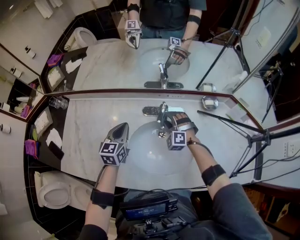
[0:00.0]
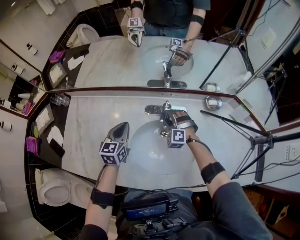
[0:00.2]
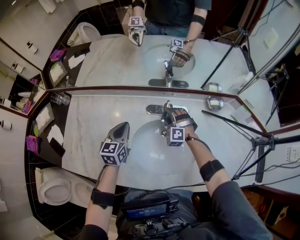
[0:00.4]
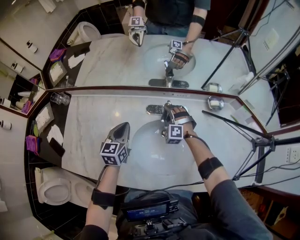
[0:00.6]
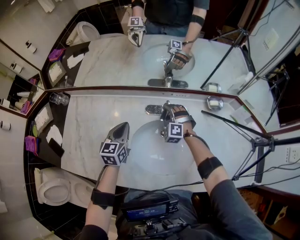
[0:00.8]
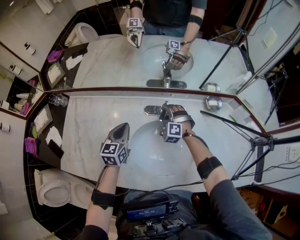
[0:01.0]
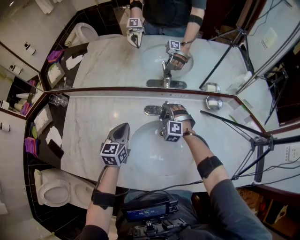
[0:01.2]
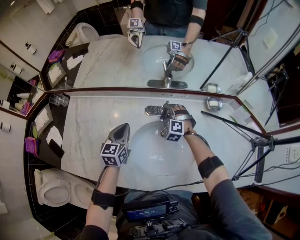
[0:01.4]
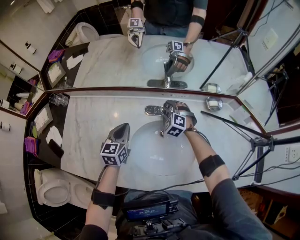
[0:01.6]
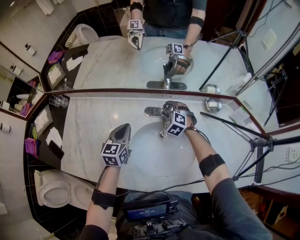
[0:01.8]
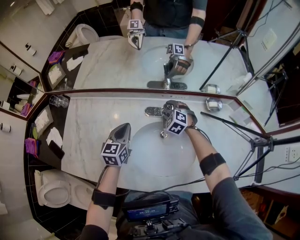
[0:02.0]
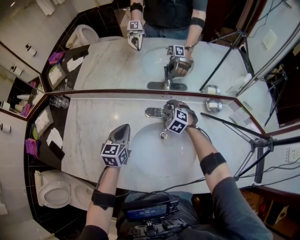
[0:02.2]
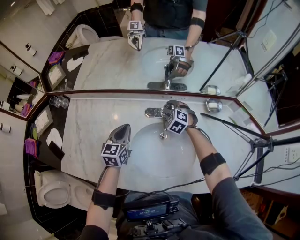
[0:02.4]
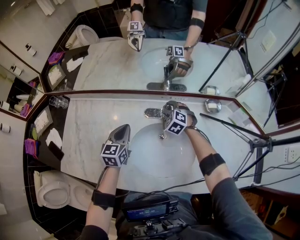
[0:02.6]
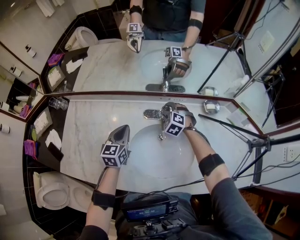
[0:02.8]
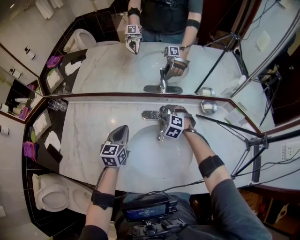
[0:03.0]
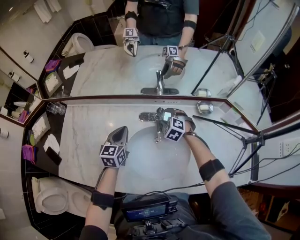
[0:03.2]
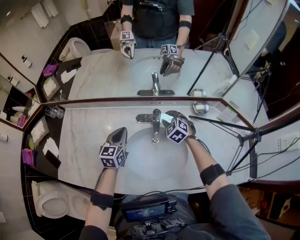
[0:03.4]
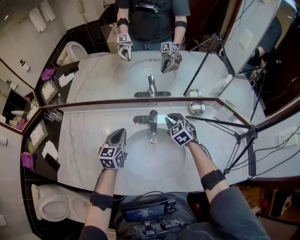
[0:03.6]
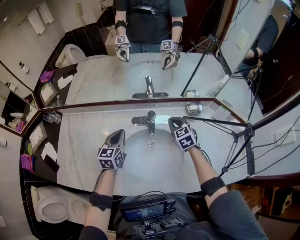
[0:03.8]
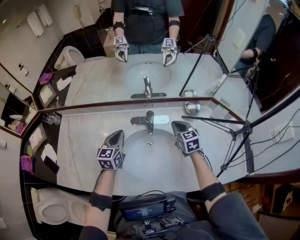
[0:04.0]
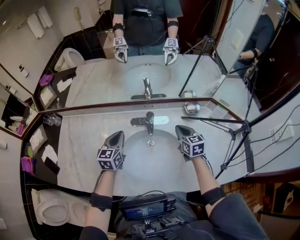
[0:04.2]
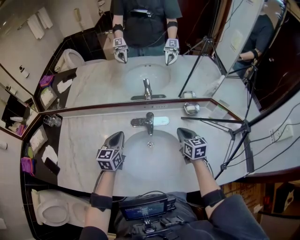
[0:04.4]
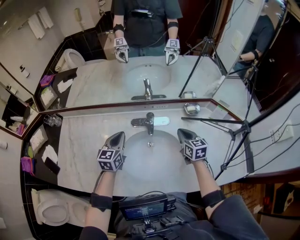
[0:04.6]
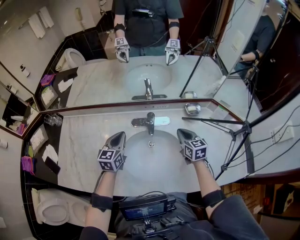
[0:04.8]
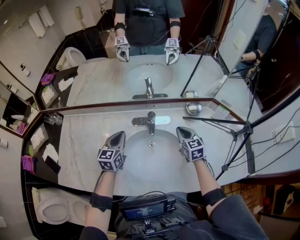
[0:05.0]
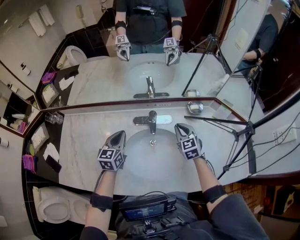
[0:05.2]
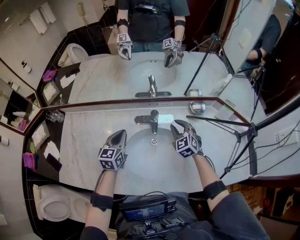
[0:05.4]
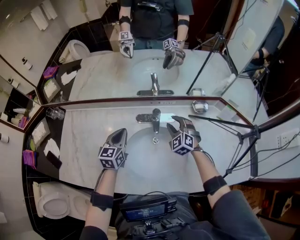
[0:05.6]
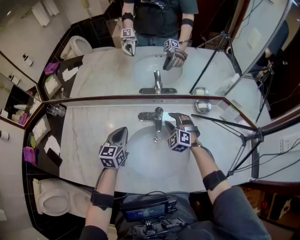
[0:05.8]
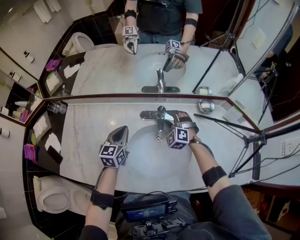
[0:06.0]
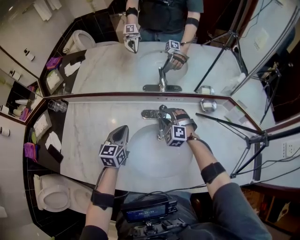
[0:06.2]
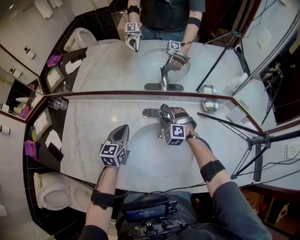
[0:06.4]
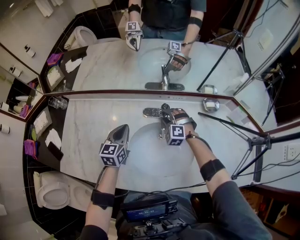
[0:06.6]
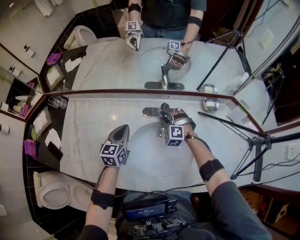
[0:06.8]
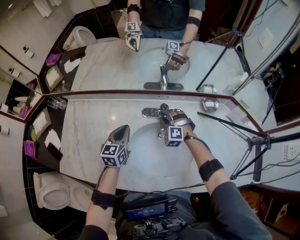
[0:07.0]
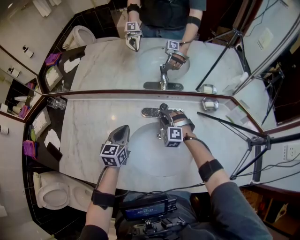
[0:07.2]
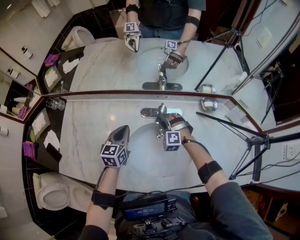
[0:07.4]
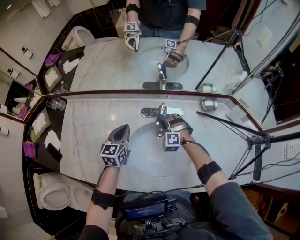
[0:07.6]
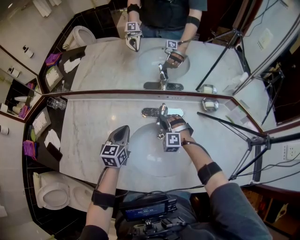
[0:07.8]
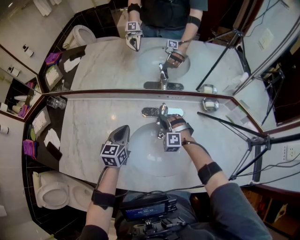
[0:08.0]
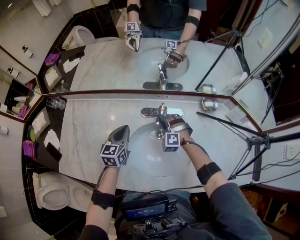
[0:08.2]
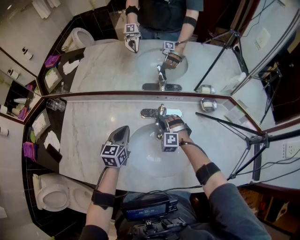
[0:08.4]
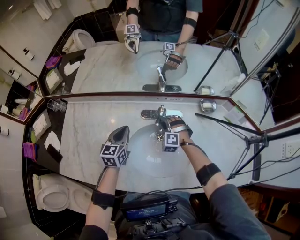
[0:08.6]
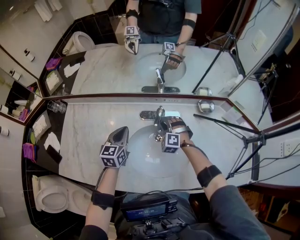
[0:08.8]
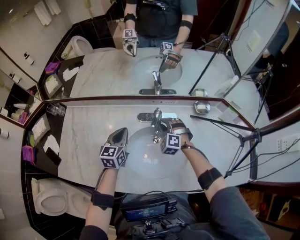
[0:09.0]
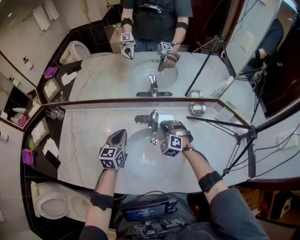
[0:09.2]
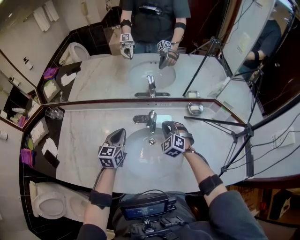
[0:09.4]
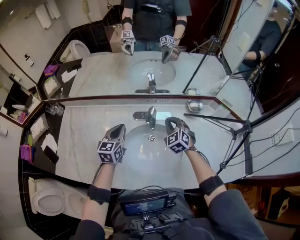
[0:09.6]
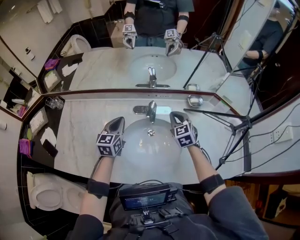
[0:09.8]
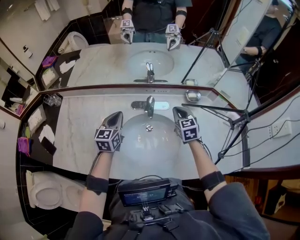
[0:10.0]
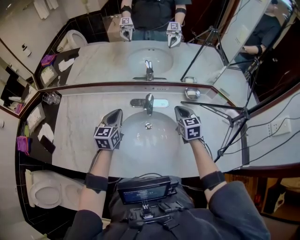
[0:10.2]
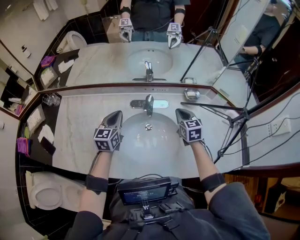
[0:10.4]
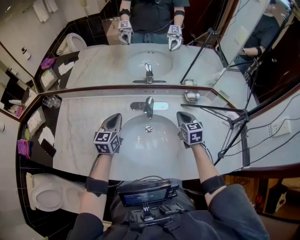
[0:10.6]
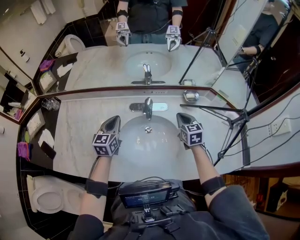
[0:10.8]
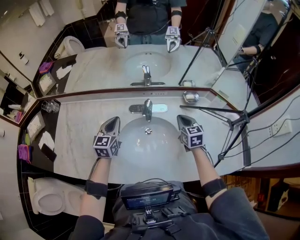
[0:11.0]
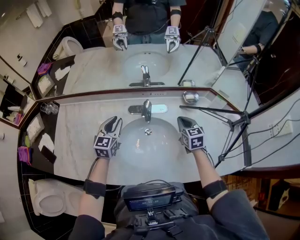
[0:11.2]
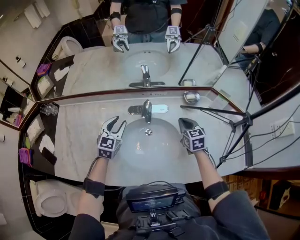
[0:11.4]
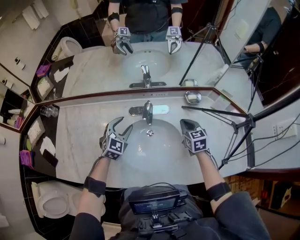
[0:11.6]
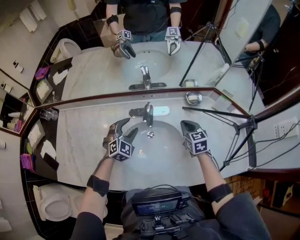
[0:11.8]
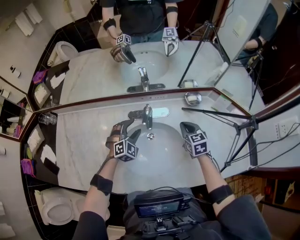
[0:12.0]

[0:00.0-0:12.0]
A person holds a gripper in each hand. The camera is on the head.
0:00.0 to 0:01.6: The right gripper shifts approximately 5 cm forward.
0:01.6 to 0:03.0: There are only small adjustments of the grippers.
0:03.0 to 0:04.4: The right gripper is displaced to the right, backward and upward by about 20 cm, rotates around the line of its fingers by about 70 degrees, clockwise from behind, and closes up, while the left gripper shifts by roughly 5 cm.
0:04.4 to 0:06.0: The right gripper travels to the left and forward by roughly 15 cm, rotates around the line of its fingers by roughly 70 degrees, counterclockwise from behind, and opens its fingers.
0:06.0 to 0:07.6: The right gripper travels downward by roughly 5 cm.
0:07.6 to 0:09.0: The right gripper moves about 5 cm.
0:09.0 to 0:10.4: The right gripper shifts approximately 15 cm to the right and upward, rotates around the line of its fingers by approximately 60 degrees, clockwise from behind, and closes up.
0:10.4 to 0:12.0: The left gripper moves downward and to the right, some 15 cm, rotates around the line of its fingers by some 60 degrees, clockwise from behind, and opens; the right gripper shifts about 5 cm downward.

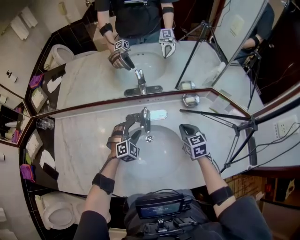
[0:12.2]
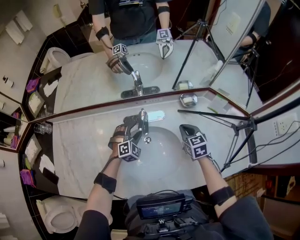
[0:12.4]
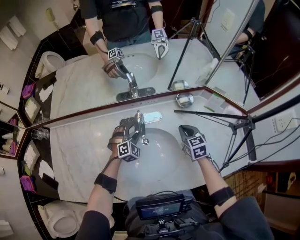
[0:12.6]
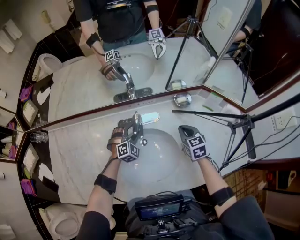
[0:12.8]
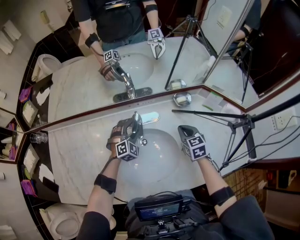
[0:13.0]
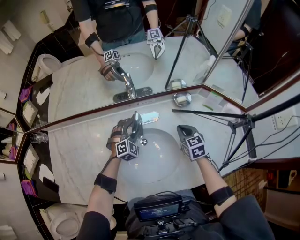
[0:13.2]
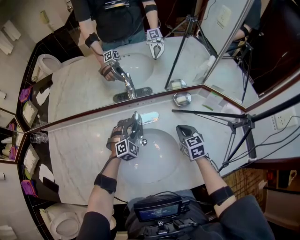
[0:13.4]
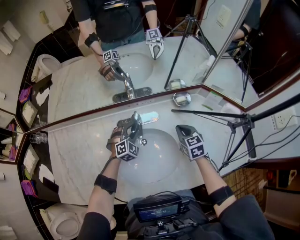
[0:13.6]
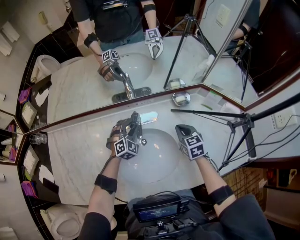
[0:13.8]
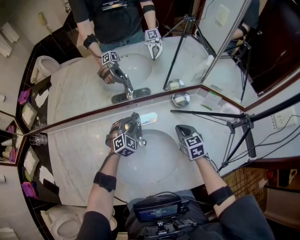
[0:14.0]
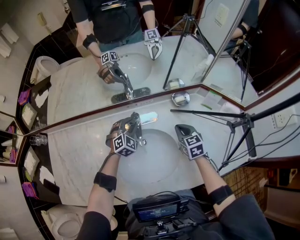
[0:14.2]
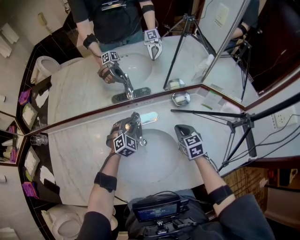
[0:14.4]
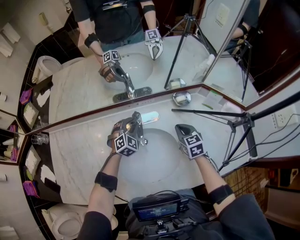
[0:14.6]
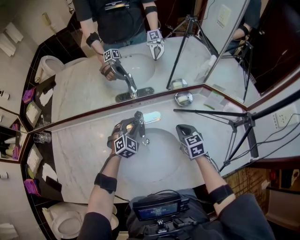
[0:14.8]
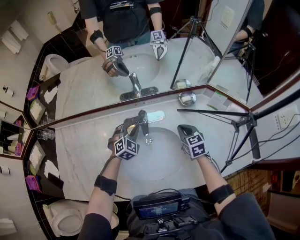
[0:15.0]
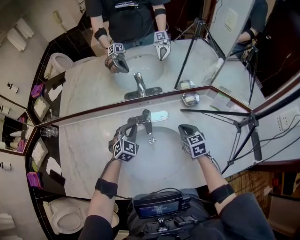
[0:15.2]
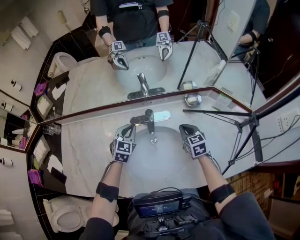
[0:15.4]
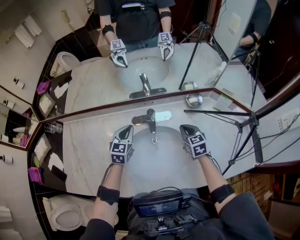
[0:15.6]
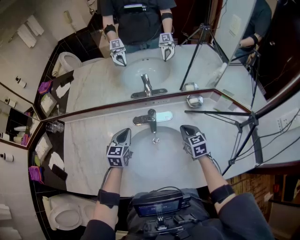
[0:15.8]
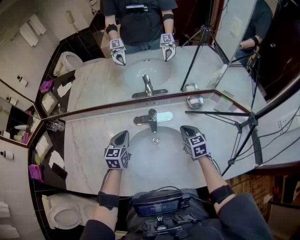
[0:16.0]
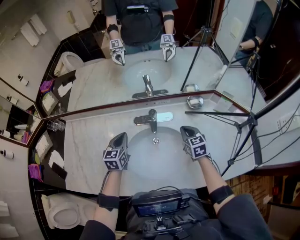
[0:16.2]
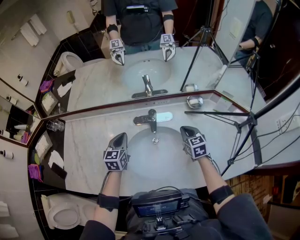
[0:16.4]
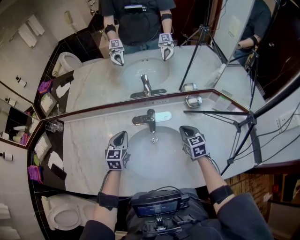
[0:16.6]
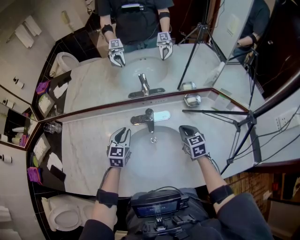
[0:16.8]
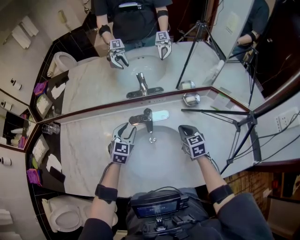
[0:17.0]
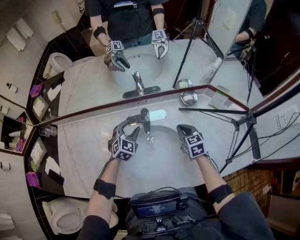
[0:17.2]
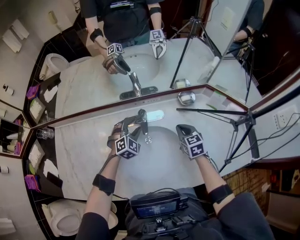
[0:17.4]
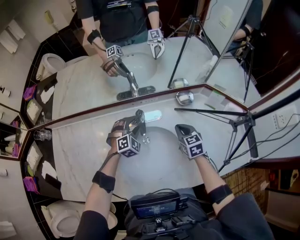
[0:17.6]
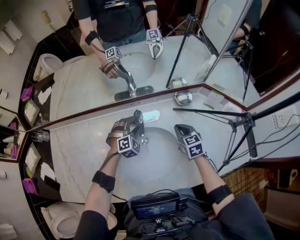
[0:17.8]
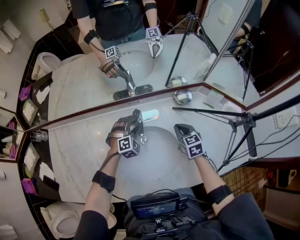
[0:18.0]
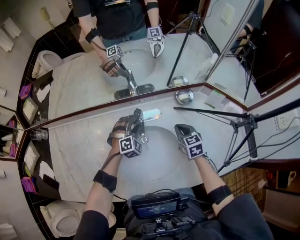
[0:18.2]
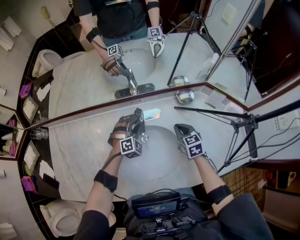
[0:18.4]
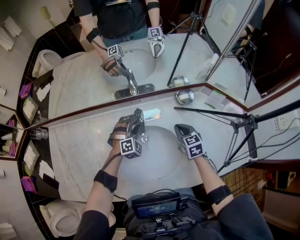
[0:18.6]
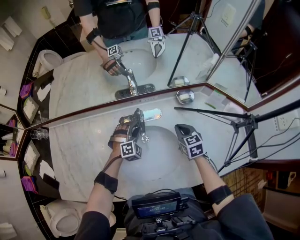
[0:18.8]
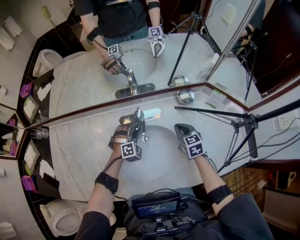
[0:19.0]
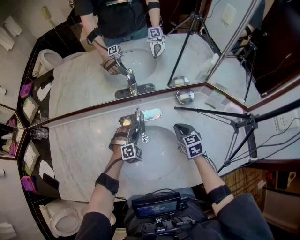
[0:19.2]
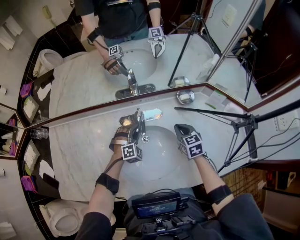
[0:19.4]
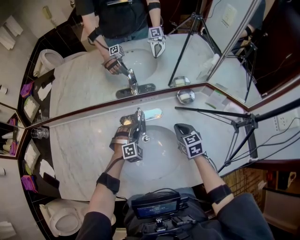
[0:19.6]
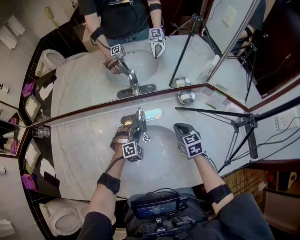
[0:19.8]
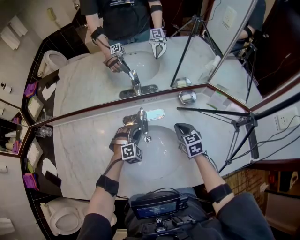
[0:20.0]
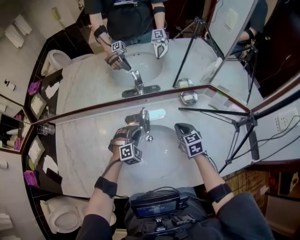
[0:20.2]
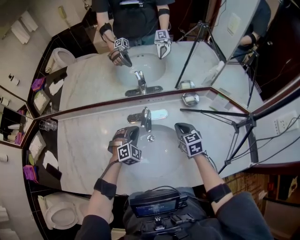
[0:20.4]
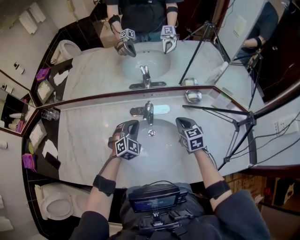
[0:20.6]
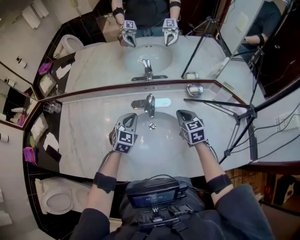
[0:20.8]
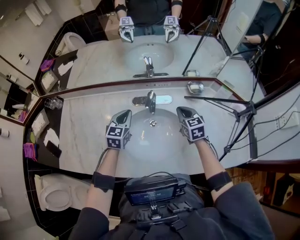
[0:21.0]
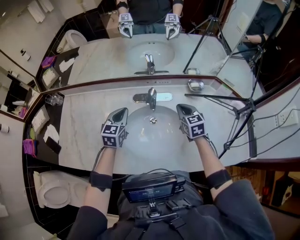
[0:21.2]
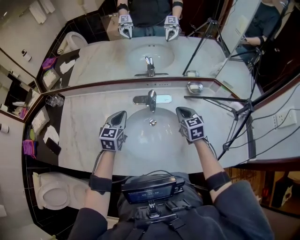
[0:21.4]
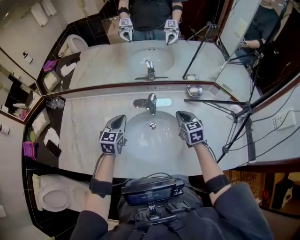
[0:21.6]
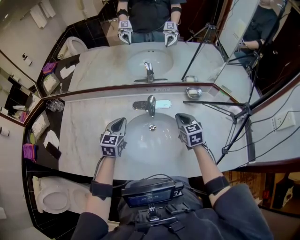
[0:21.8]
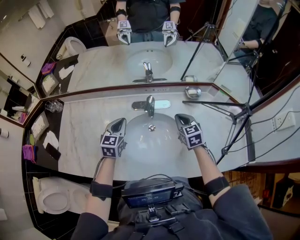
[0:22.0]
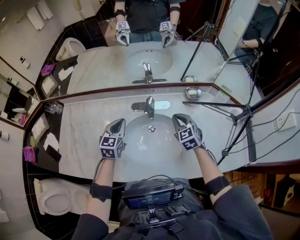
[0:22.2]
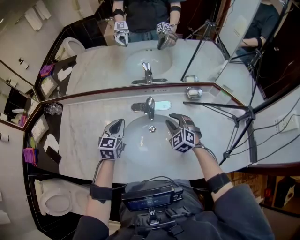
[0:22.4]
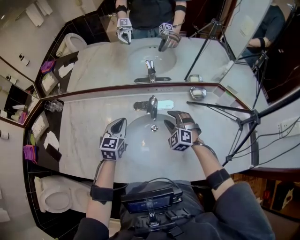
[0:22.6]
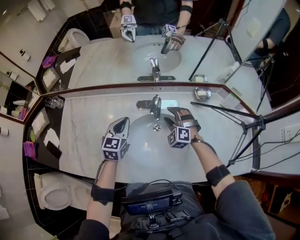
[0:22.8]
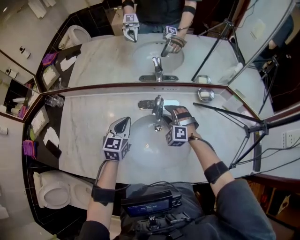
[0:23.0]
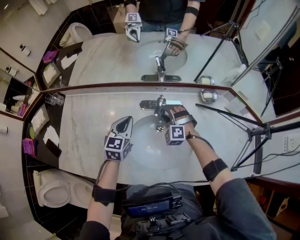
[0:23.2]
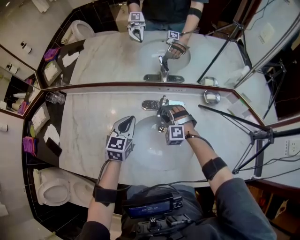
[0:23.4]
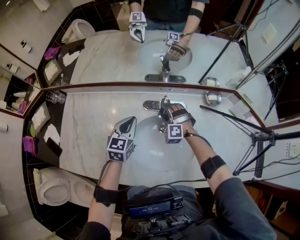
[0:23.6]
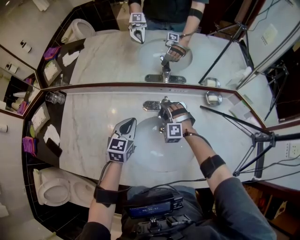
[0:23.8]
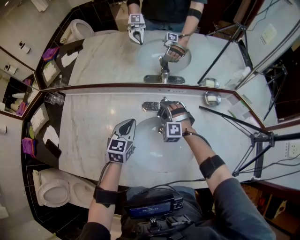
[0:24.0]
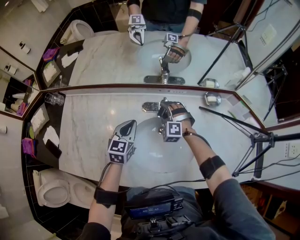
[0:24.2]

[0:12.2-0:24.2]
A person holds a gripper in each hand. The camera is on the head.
0:12.2 to 0:13.8: The left gripper shifts roughly 5 cm forward, and closes its fingers.
0:13.8 to 0:15.2: The left gripper moves roughly 5 cm, and closes up.
0:15.2 to 0:16.6: The left gripper moves to the left, some 10 cm, and changes its angle by some 40 degrees.
0:16.6 to 0:18.2: The left gripper travels to the right, downward and forward by approximately 20 cm, rotates around the line of its fingers by approximately 60 degrees, clockwise from behind, and opens up.
0:18.2 to 0:19.8: There are only small adjustments of the grippers.
0:19.8 to 0:21.2: The left gripper heads upward, to the left and backward, covering some 20 cm, rolls counterclockwise, seen from behind, by some 60 degrees, and closes; the right gripper moves upward, approximately 5 cm.
0:21.2 to 0:22.6: The right gripper is displaced to the left by roughly 5 cm, rolls counterclockwise, seen from behind, by approximately 50 degrees, and opens up.
0:22.6 to 0:24.2: The left gripper ends up roughly 5 cm from where it was. Meanwhile the right gripper heads forward, to the left and downward, covering some 15 cm.
